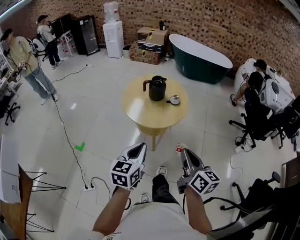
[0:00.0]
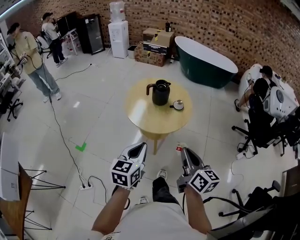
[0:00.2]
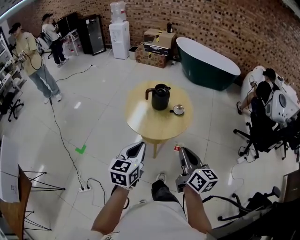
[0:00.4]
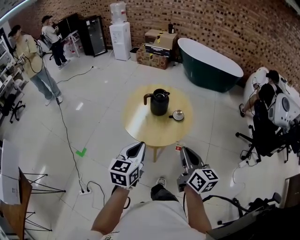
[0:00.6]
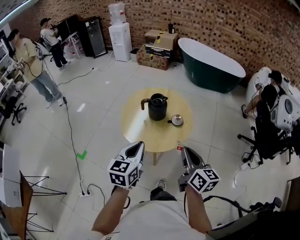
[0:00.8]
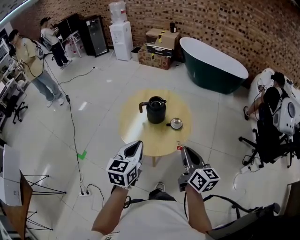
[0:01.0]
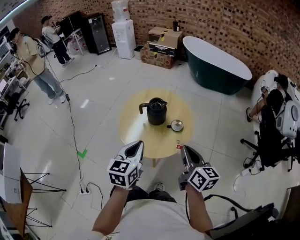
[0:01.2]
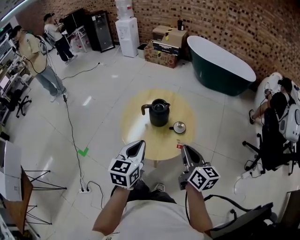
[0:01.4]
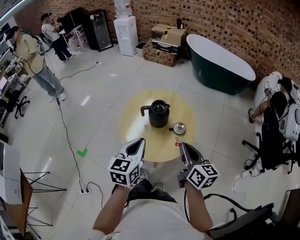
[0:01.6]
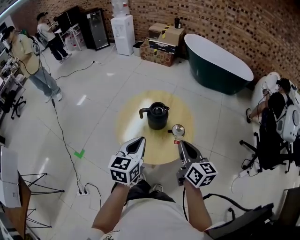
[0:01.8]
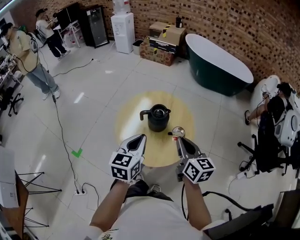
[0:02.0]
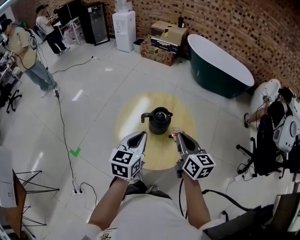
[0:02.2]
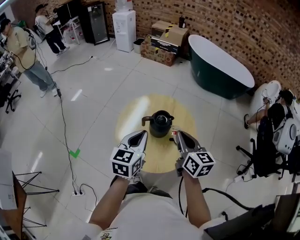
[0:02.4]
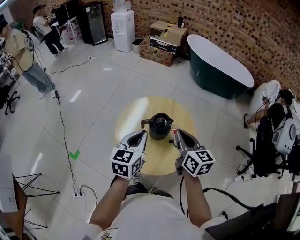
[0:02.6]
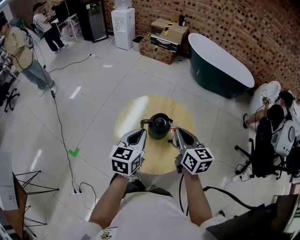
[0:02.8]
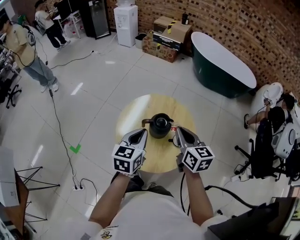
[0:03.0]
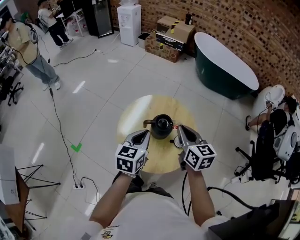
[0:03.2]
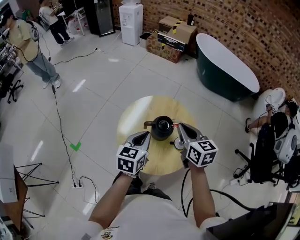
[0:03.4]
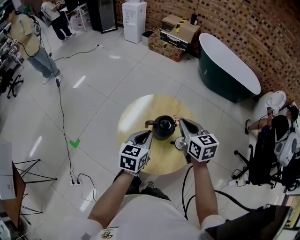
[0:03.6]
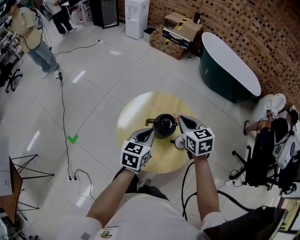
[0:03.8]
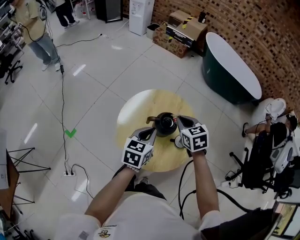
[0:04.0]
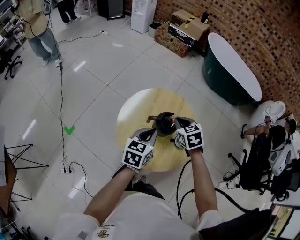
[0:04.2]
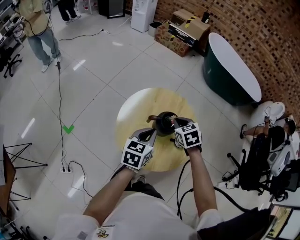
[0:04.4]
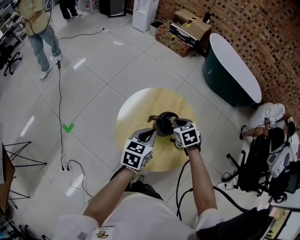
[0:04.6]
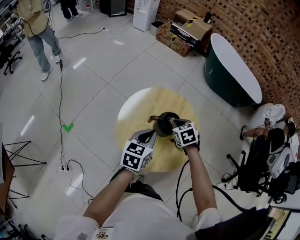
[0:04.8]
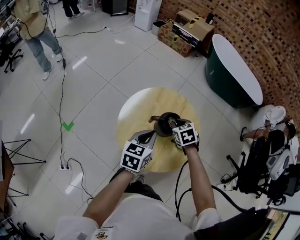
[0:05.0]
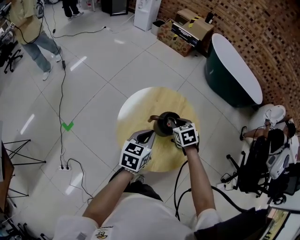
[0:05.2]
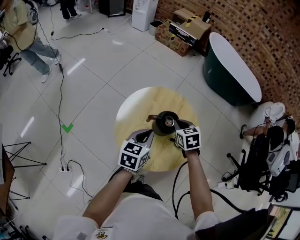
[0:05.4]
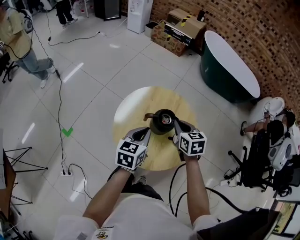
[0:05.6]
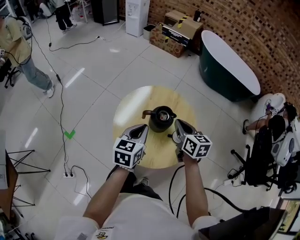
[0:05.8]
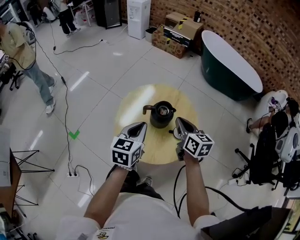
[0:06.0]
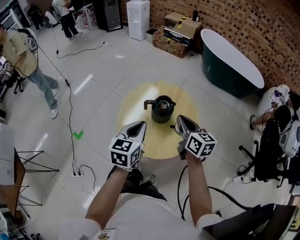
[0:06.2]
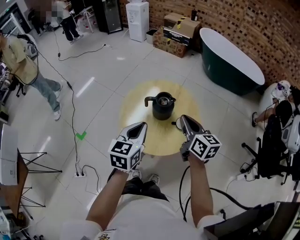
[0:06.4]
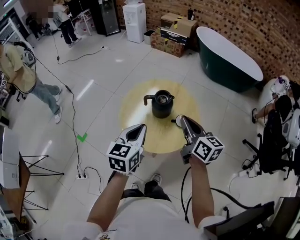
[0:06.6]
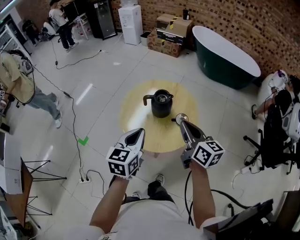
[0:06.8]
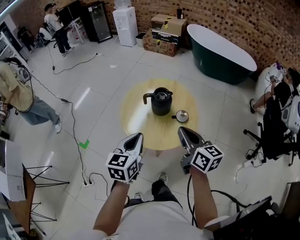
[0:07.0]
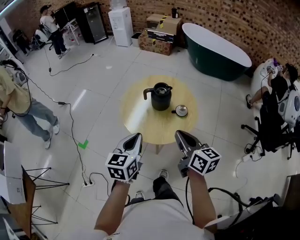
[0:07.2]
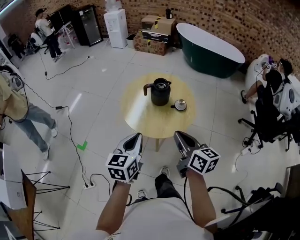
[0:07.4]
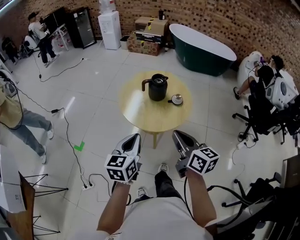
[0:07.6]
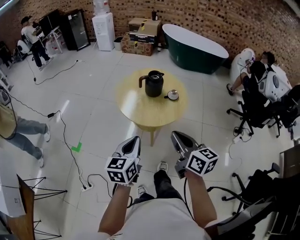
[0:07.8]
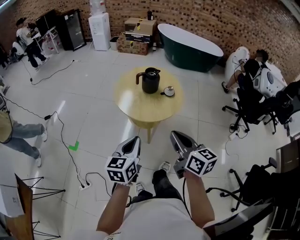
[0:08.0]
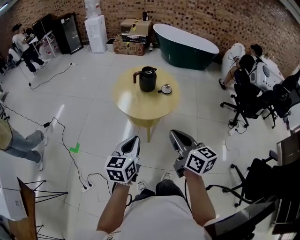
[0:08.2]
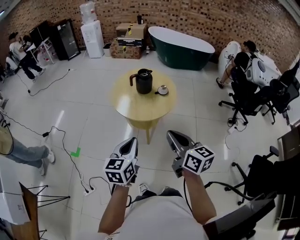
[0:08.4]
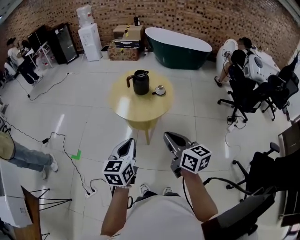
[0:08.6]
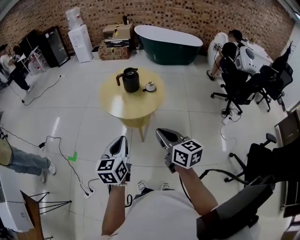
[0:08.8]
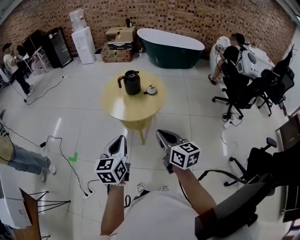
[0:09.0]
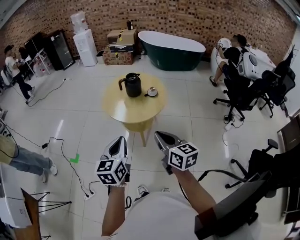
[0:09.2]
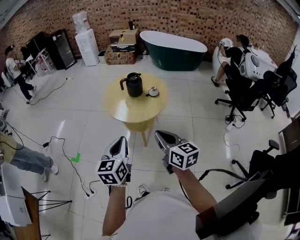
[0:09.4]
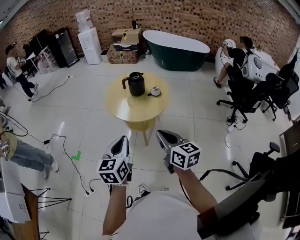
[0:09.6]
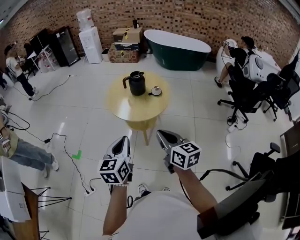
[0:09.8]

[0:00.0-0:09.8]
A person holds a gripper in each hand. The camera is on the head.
0:00.0 to 0:01.4: The grippers both shift forward by roughly 25 cm.
0:01.4 to 0:02.8: Both grippers travel together forward, approximately 15 cm.
0:02.8 to 0:04.2: The left gripper shifts approximately 5 cm downward, while the right gripper shifts roughly 15 cm downward and forward, and points its fingers approximately 30 degrees further downward.
0:05.6 to 0:07.0: The grippers both shift backward by about 20 cm. The right gripper turns by about 30 degrees.
0:07.0 to 0:08.4: The two grippers go about 25 cm backward.
0:08.4 to 0:09.8: The grippers move only a little.

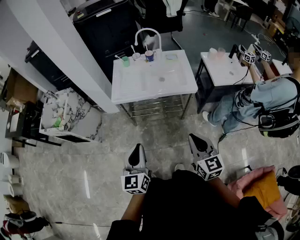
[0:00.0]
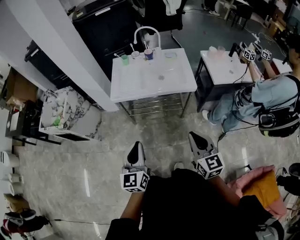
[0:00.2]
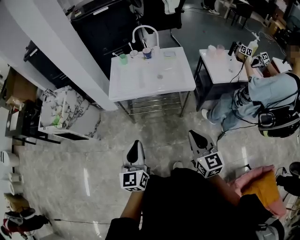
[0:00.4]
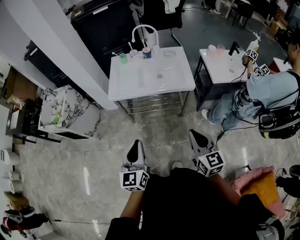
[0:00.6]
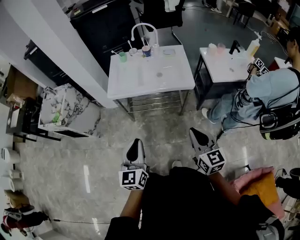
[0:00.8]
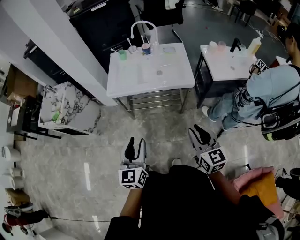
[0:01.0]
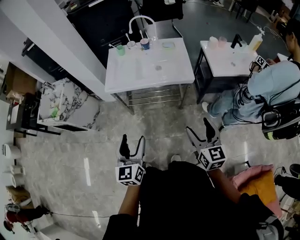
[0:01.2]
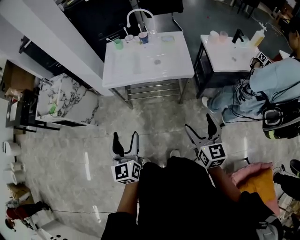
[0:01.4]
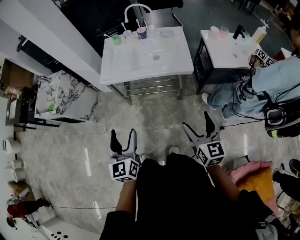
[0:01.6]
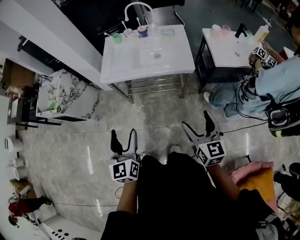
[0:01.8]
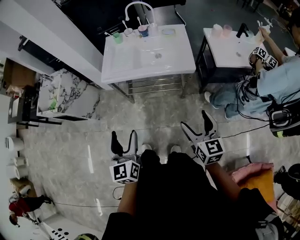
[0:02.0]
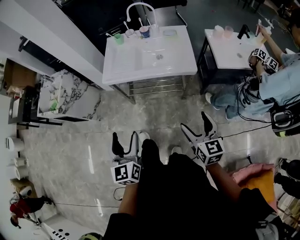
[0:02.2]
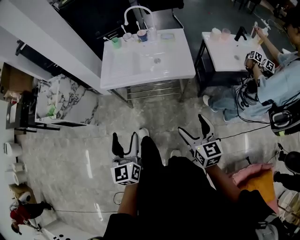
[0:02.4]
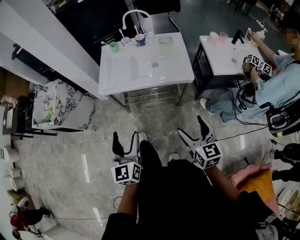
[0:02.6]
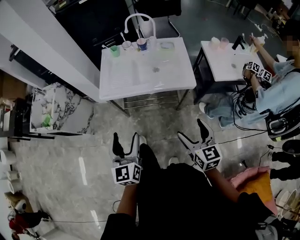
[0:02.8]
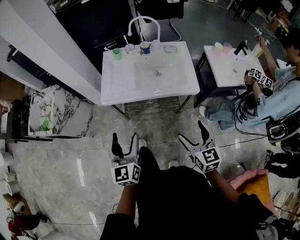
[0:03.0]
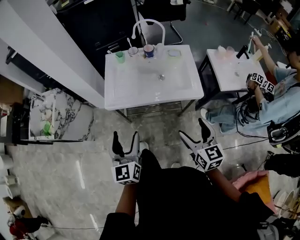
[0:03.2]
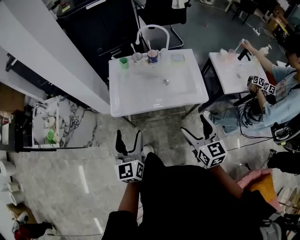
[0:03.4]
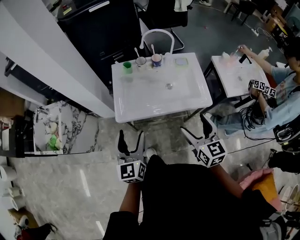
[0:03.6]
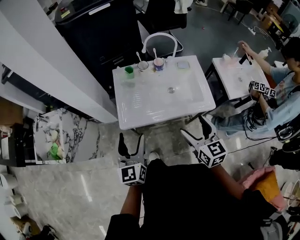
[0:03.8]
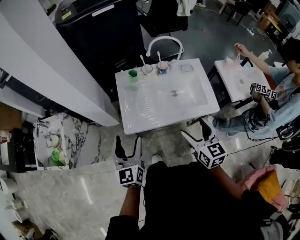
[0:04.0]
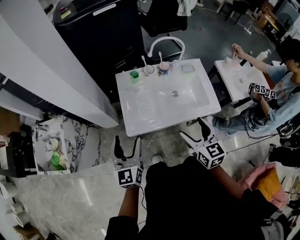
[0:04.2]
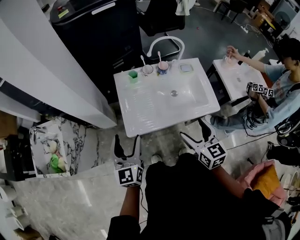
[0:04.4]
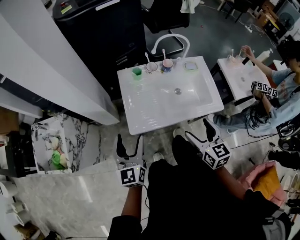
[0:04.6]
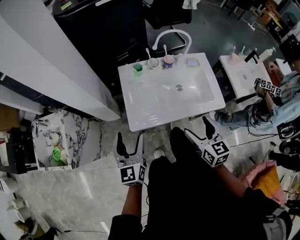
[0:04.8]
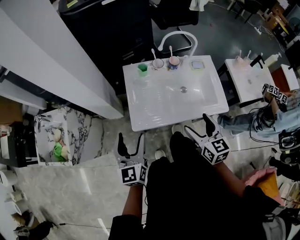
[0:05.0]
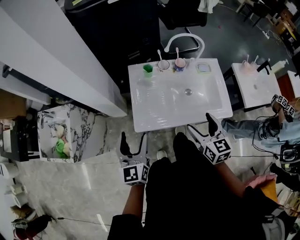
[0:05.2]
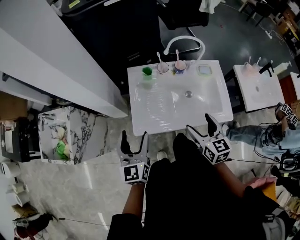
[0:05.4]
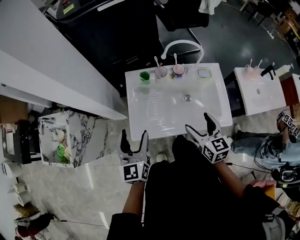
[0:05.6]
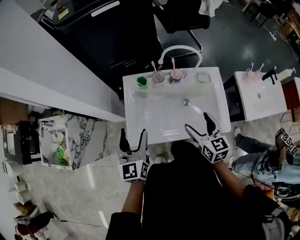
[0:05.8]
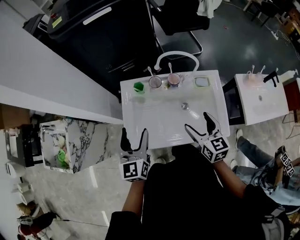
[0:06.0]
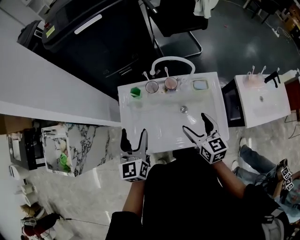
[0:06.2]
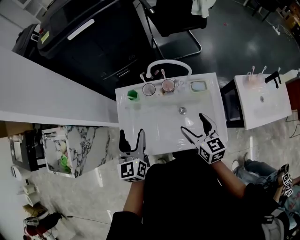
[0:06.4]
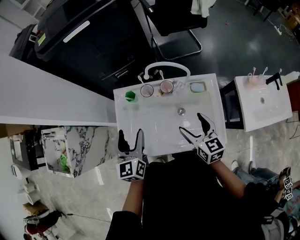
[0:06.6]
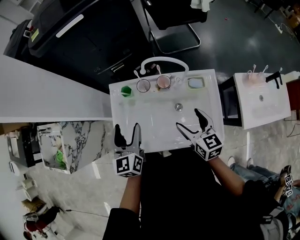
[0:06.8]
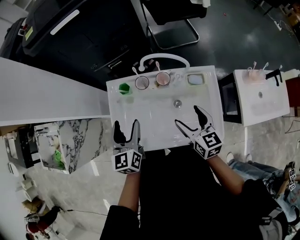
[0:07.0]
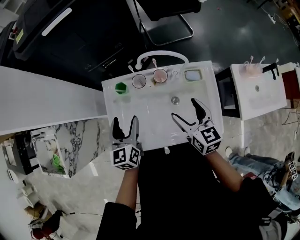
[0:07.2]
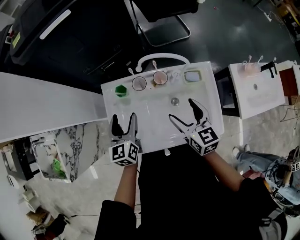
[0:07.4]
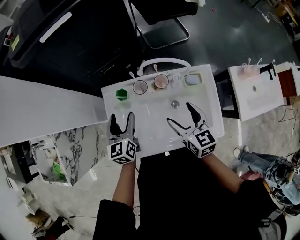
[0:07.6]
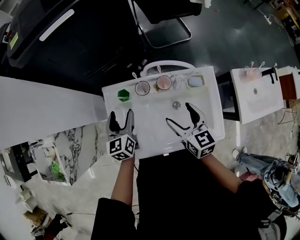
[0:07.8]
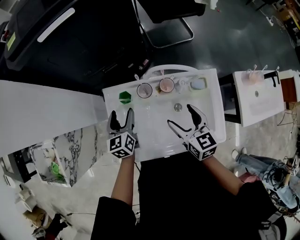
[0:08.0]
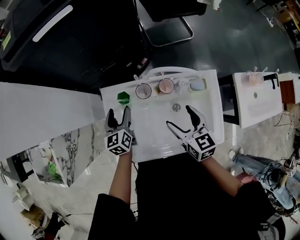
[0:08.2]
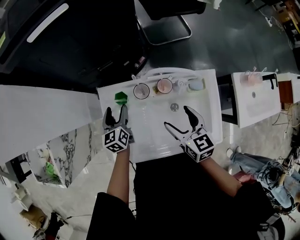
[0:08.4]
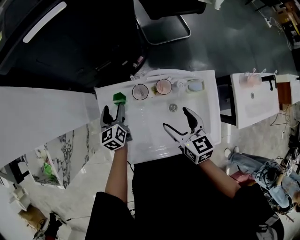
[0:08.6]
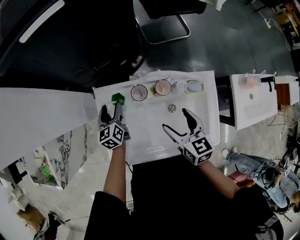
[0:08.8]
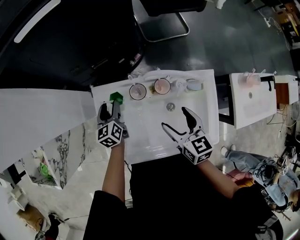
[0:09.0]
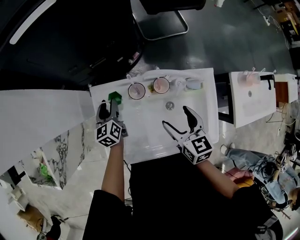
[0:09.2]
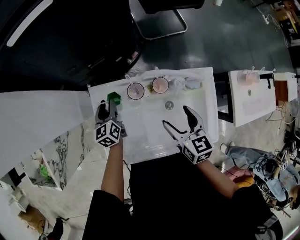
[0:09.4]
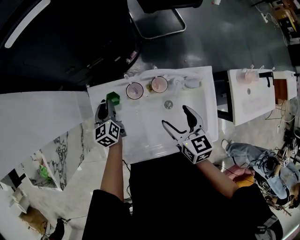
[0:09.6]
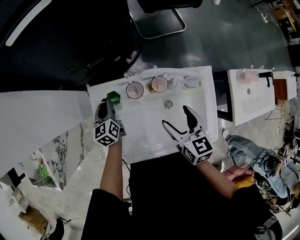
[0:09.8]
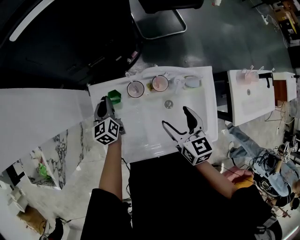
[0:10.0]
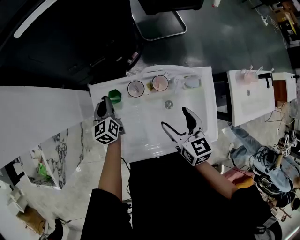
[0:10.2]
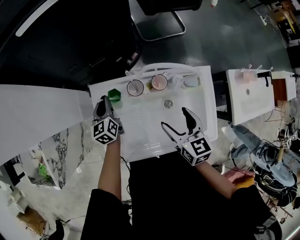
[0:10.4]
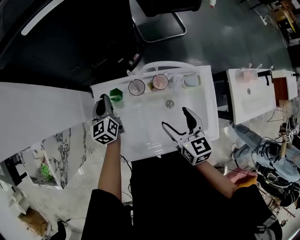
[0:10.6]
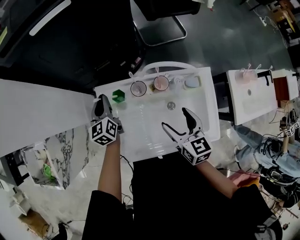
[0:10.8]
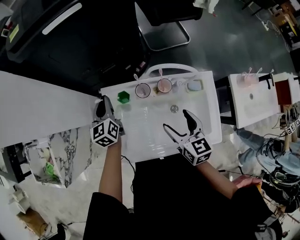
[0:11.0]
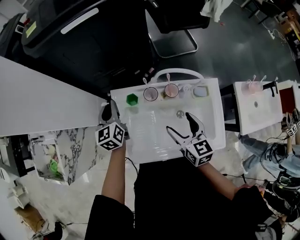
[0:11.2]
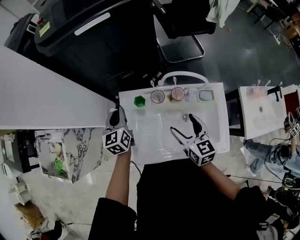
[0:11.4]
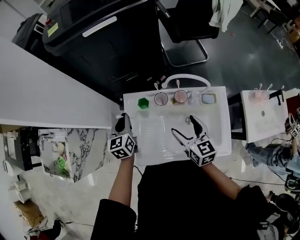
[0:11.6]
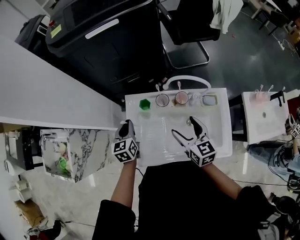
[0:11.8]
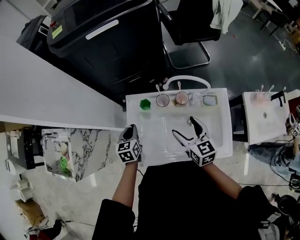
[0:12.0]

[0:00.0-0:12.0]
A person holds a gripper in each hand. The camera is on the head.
0:00.0 to 0:01.6: The right gripper goes roughly 10 cm to the right, and opens its fingers. Meanwhile the left gripper opens its fingers.
0:01.6 to 0:03.0: The right gripper travels forward and to the left by approximately 15 cm; the left gripper moves forward, some 15 cm.
0:03.0 to 0:04.4: Both grippers move forward and to the left, about 30 cm.
0:04.4 to 0:06.0: The two grippers go some 20 cm forward and to the right.
0:06.0 to 0:07.6: The right gripper moves forward, about 10 cm, while the left gripper goes about 20 cm forward and downward.
0:07.6 to 0:09.0: The left gripper travels downward and forward by approximately 15 cm. Meanwhile the right gripper moves forward, approximately 5 cm.
0:09.0 to 0:10.4: The left gripper closes.
0:10.4 to 0:12.0: The left gripper moves backward, about 10 cm; the right gripper shifts by approximately 5 cm.

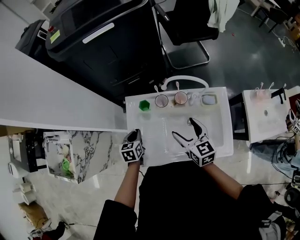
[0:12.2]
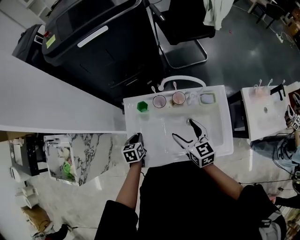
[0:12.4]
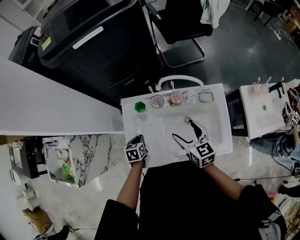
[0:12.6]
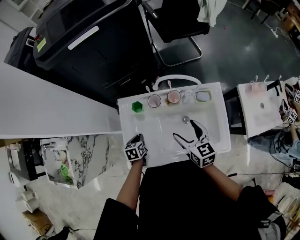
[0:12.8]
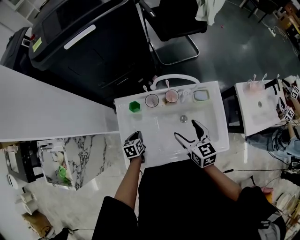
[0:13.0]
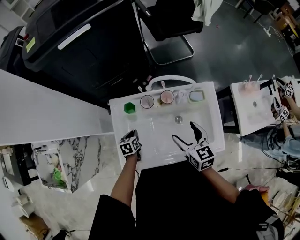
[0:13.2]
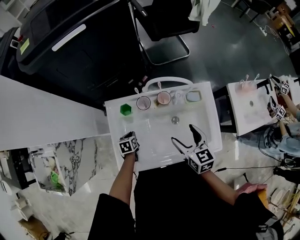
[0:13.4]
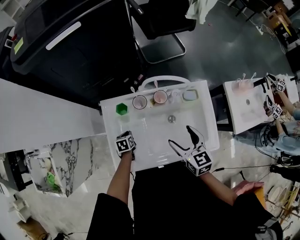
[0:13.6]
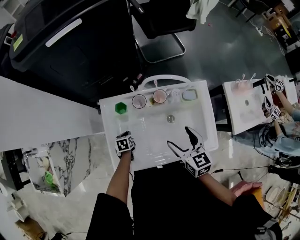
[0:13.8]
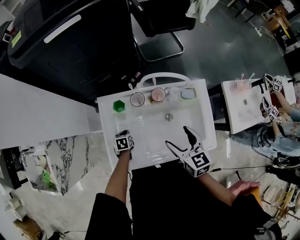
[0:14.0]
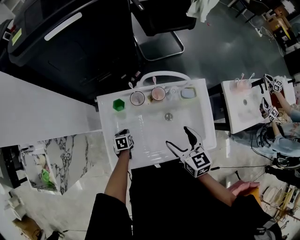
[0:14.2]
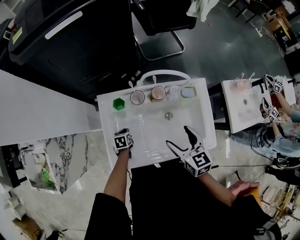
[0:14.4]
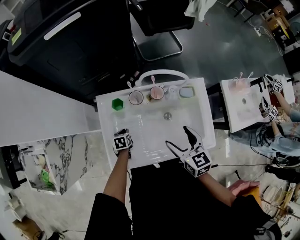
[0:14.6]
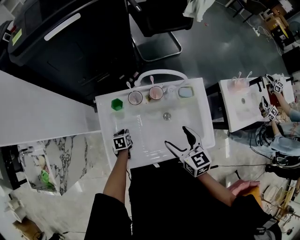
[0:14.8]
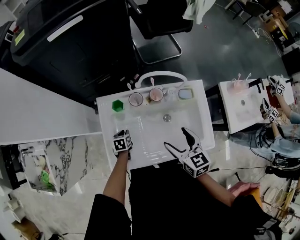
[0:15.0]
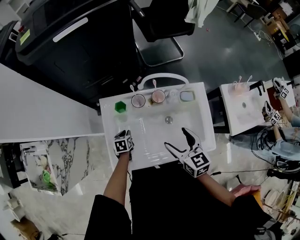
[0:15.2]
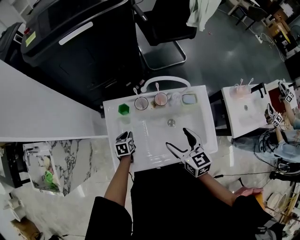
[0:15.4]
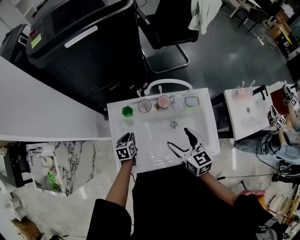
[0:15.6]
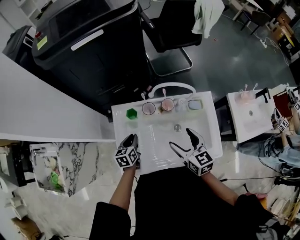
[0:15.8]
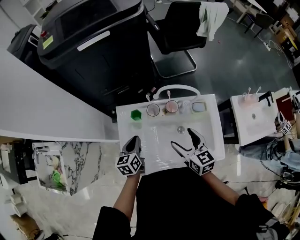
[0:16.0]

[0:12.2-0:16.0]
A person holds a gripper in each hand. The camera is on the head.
0:12.2 to 0:13.4: The right gripper moves to the right, some 5 cm. The left gripper shifts roughly 15 cm downward.
0:13.4 to 0:14.8: There are only small adjustments of the grippers.
0:14.8 to 0:16.0: The left gripper is displaced upward by some 25 cm, and points its fingers roughly 30 degrees further upward; the right gripper shifts by some 5 cm.
